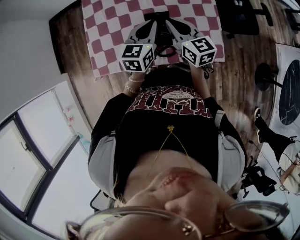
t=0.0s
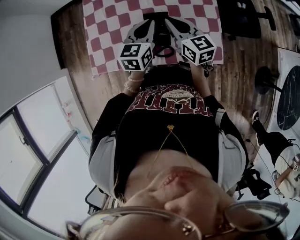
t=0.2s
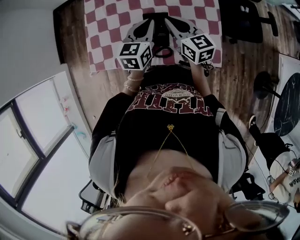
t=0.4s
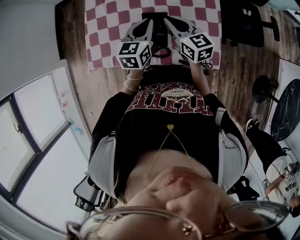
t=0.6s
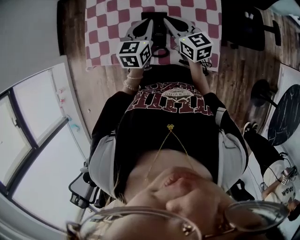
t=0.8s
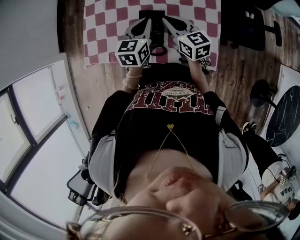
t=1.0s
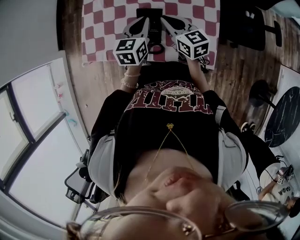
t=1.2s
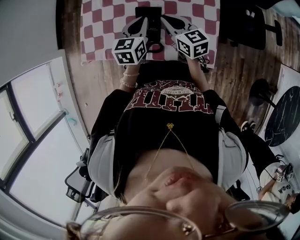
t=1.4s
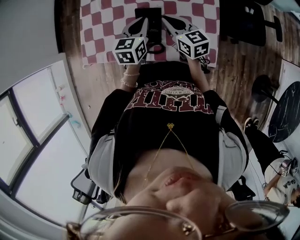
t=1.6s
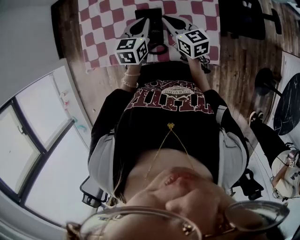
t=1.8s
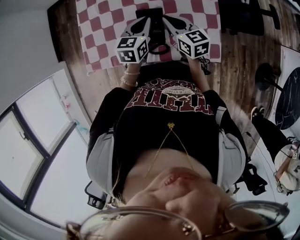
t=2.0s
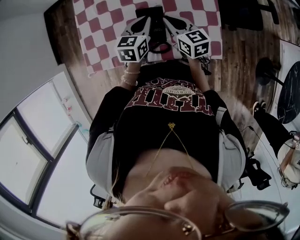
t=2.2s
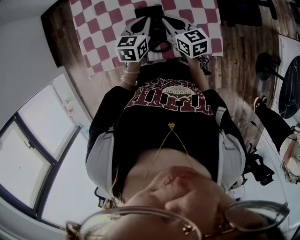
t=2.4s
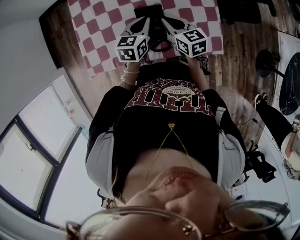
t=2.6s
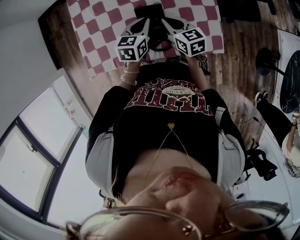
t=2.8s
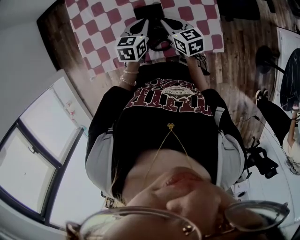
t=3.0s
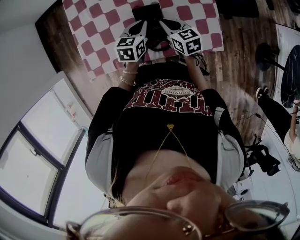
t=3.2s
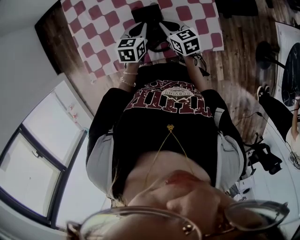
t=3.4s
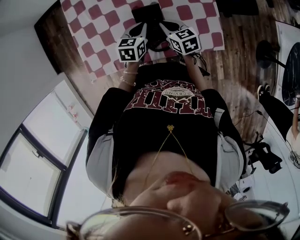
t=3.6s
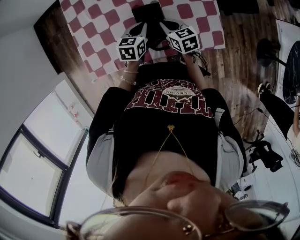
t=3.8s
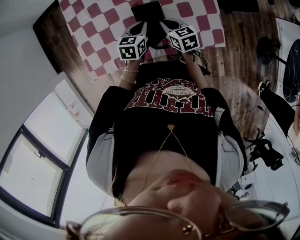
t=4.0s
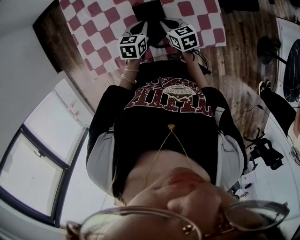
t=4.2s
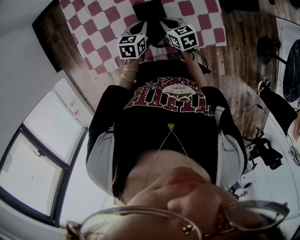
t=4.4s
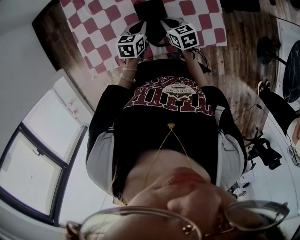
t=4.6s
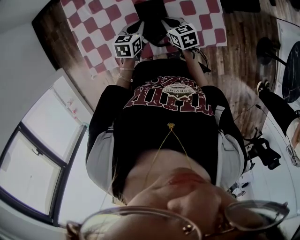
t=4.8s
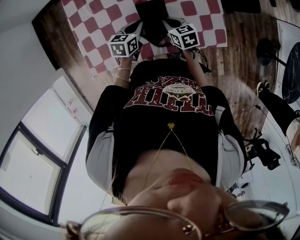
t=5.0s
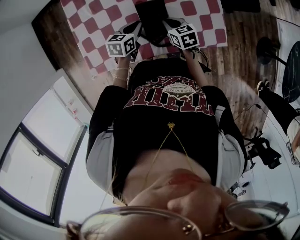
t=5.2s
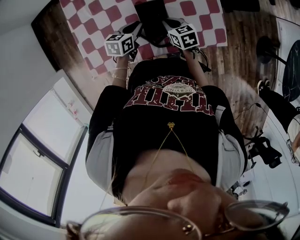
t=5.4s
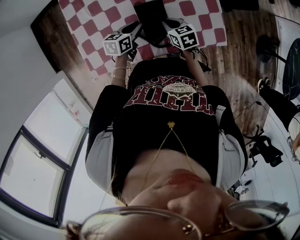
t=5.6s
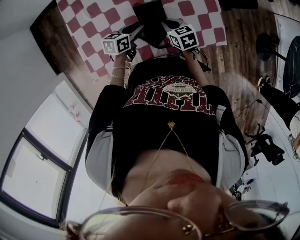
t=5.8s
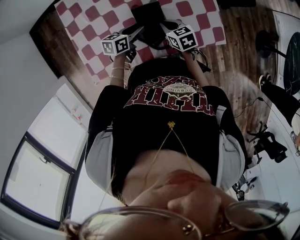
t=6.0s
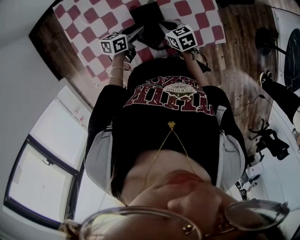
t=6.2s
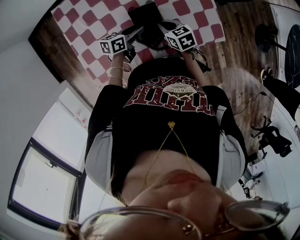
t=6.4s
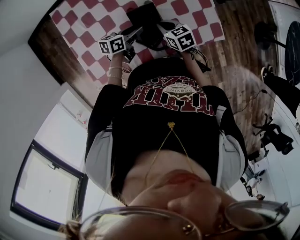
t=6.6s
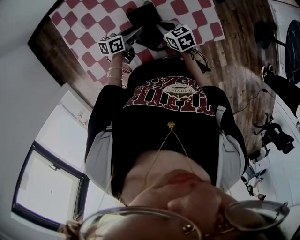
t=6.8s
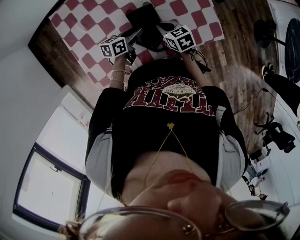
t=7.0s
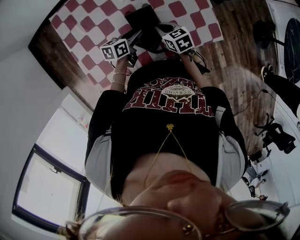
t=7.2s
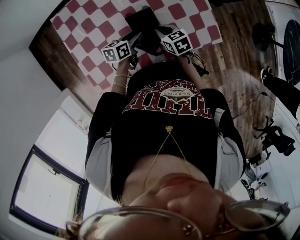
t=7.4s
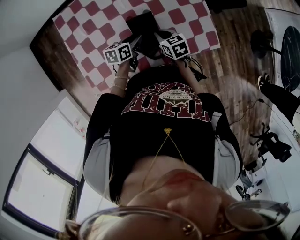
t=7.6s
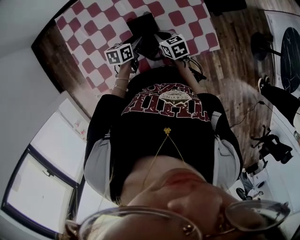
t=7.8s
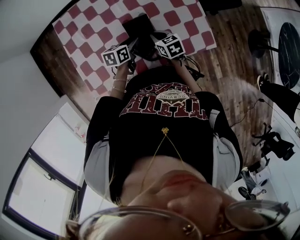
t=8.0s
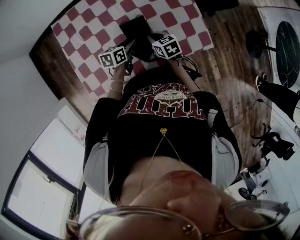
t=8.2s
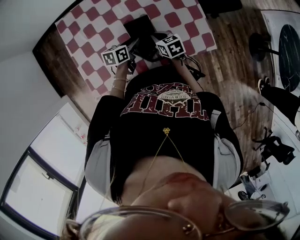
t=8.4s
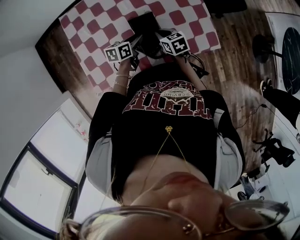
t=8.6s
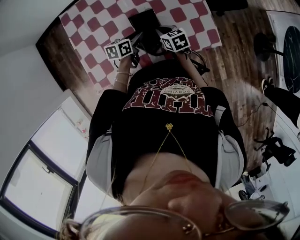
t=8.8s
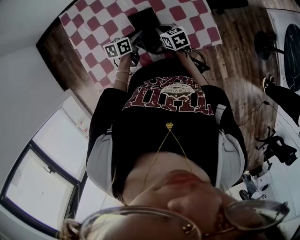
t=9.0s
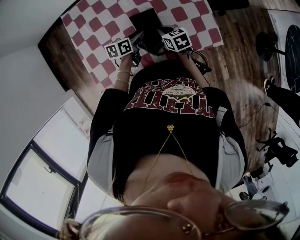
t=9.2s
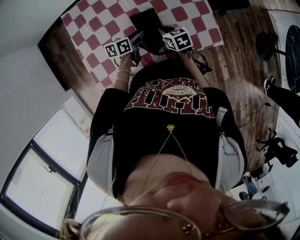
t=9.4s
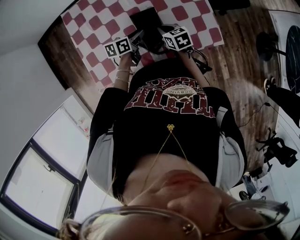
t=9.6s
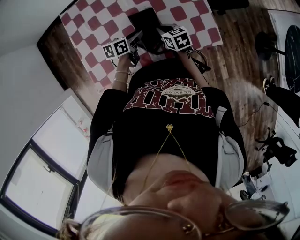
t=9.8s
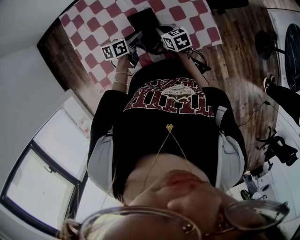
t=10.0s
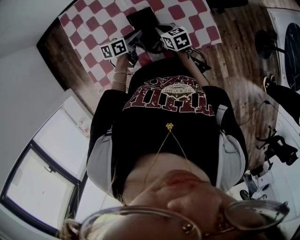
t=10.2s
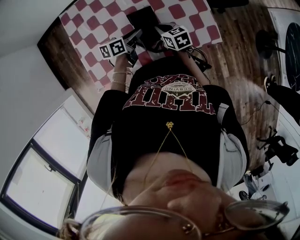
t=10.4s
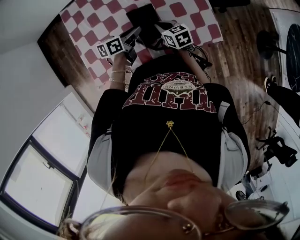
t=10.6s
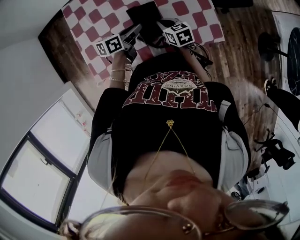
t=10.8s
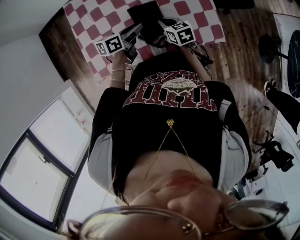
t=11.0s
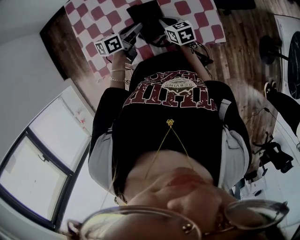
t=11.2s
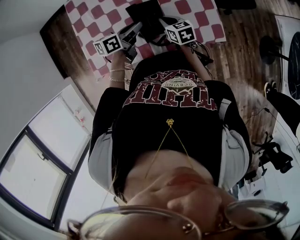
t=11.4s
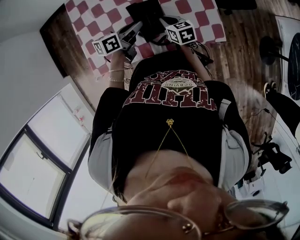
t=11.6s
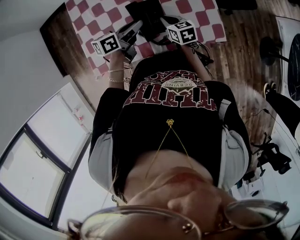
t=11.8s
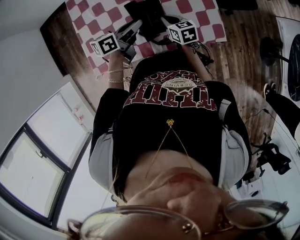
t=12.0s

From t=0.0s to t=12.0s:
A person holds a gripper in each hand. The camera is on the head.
From t=0.0s to t=1.6s: The two grippers go roughly 5 cm downward.
From t=1.6s to t=3.0s: Both grippers move downward, some 5 cm.
From t=3.0s to t=4.4s: The two grippers go approximately 5 cm downward.
From t=4.4s to t=6.0s: The left gripper swivels roughly 30 degrees, and opens.
From t=6.0s to t=10.4s: The grippers make only small movements.
From t=10.4s to t=12.0s: The left gripper shifts roughly 10 cm upward.

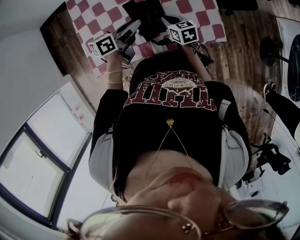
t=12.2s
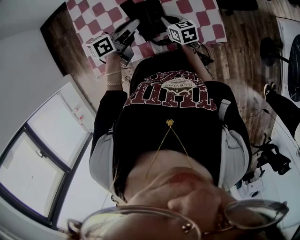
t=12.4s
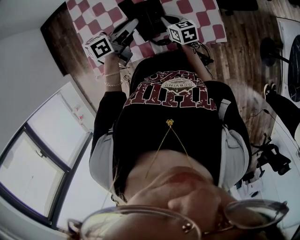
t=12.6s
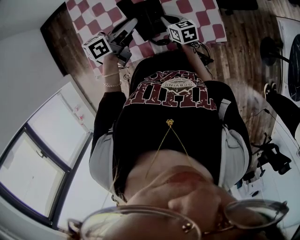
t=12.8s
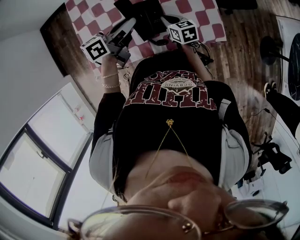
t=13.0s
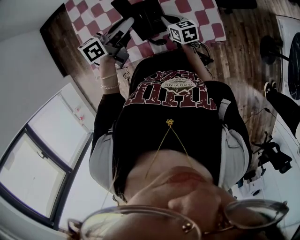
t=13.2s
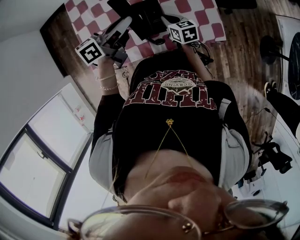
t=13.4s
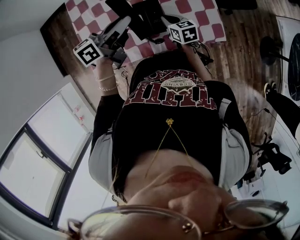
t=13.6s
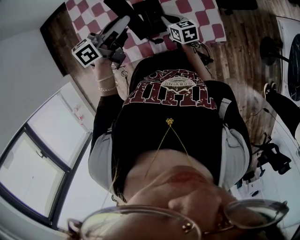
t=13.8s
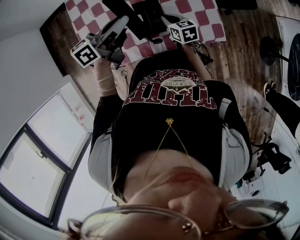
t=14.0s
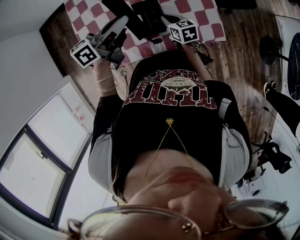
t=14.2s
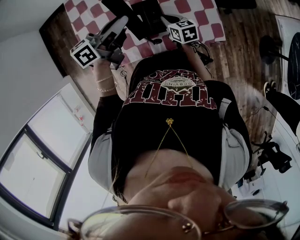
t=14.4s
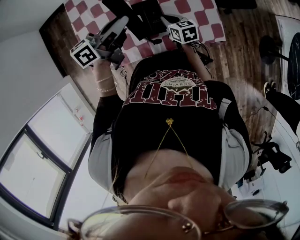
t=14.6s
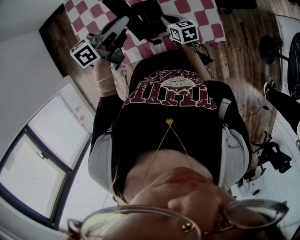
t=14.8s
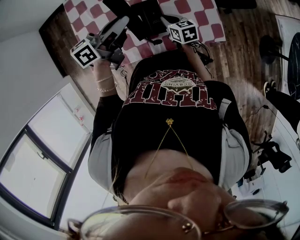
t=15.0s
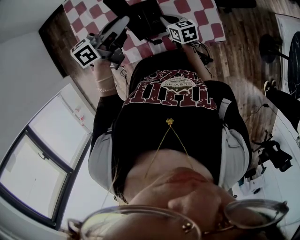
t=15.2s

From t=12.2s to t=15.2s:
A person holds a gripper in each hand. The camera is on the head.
From t=12.2s to t=13.8s: The left gripper shifts about 10 cm upward.
From t=13.8s to t=15.2s: Both grippers stay about where they are.

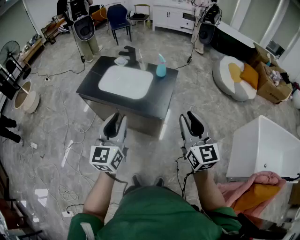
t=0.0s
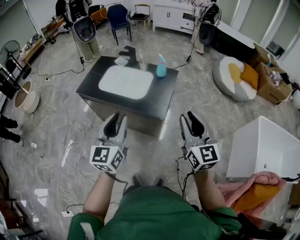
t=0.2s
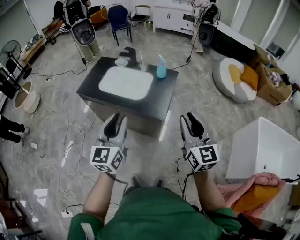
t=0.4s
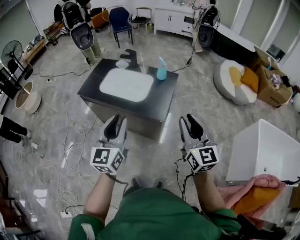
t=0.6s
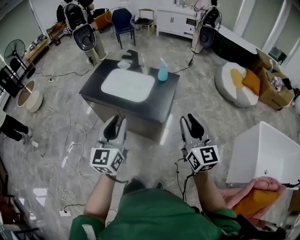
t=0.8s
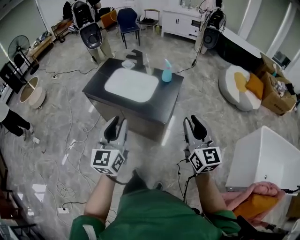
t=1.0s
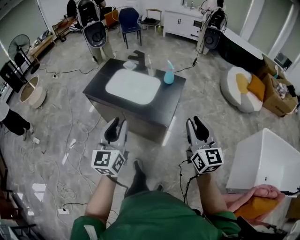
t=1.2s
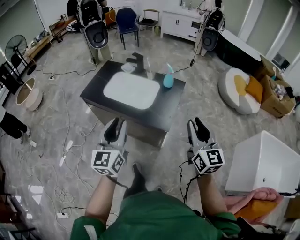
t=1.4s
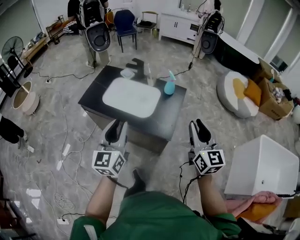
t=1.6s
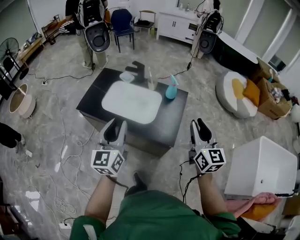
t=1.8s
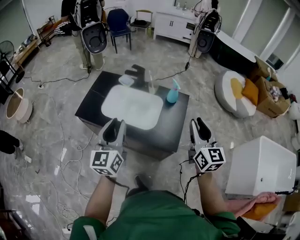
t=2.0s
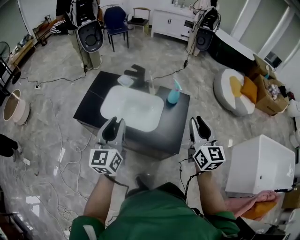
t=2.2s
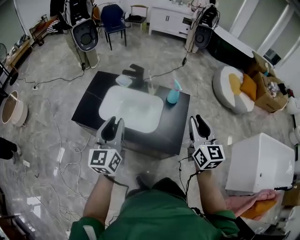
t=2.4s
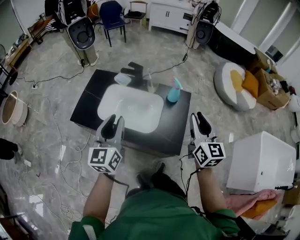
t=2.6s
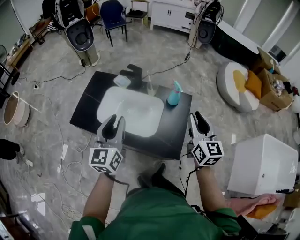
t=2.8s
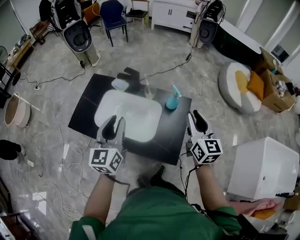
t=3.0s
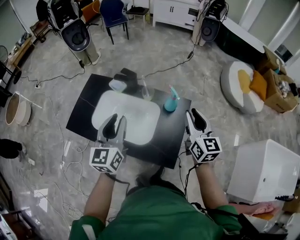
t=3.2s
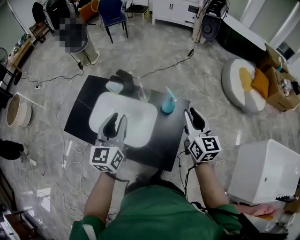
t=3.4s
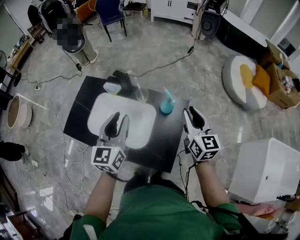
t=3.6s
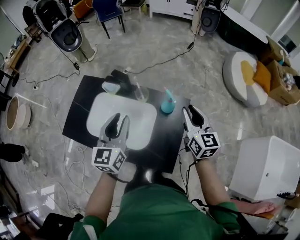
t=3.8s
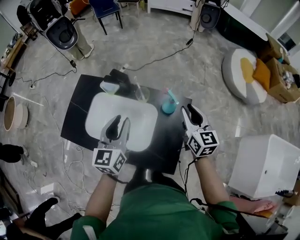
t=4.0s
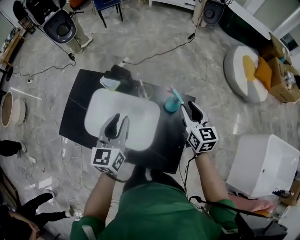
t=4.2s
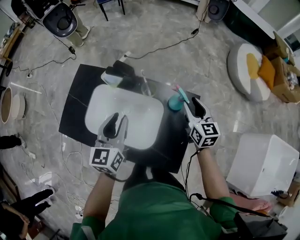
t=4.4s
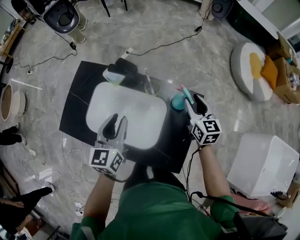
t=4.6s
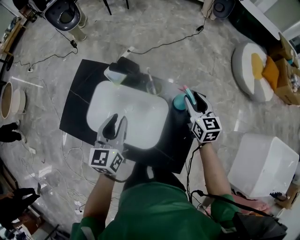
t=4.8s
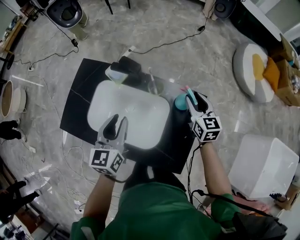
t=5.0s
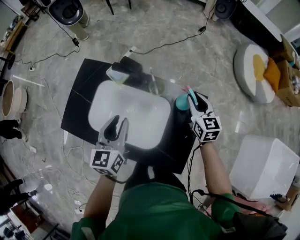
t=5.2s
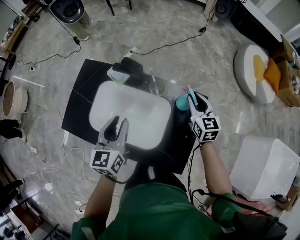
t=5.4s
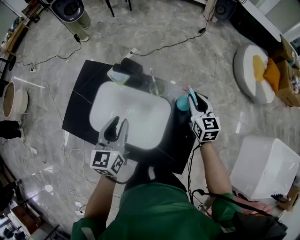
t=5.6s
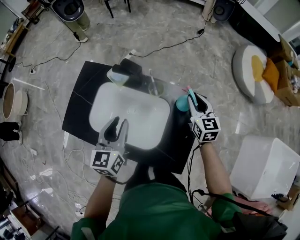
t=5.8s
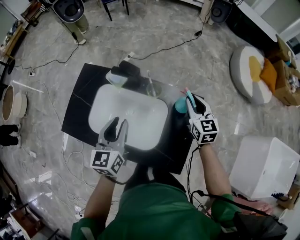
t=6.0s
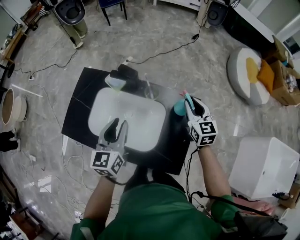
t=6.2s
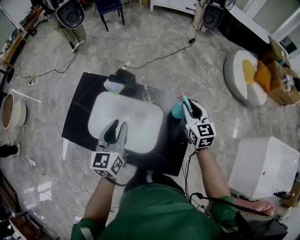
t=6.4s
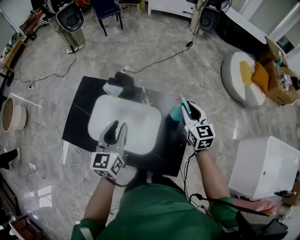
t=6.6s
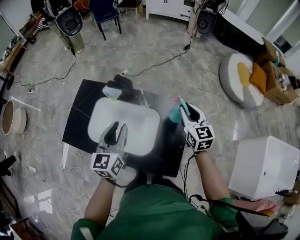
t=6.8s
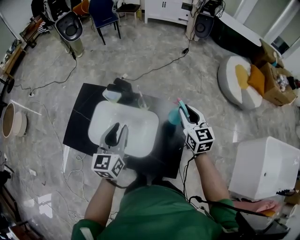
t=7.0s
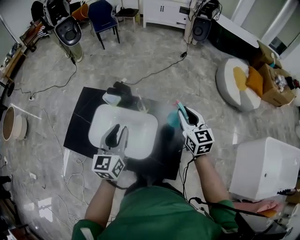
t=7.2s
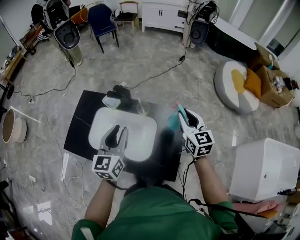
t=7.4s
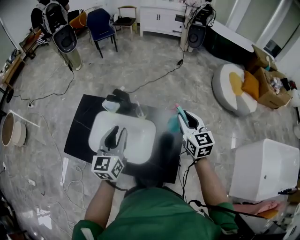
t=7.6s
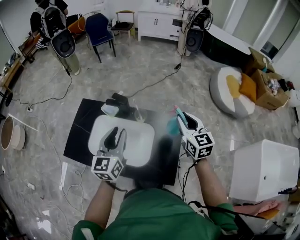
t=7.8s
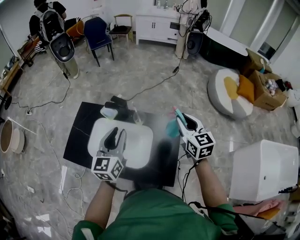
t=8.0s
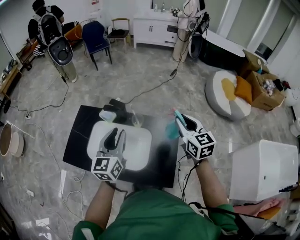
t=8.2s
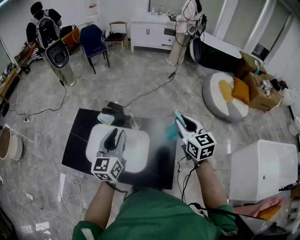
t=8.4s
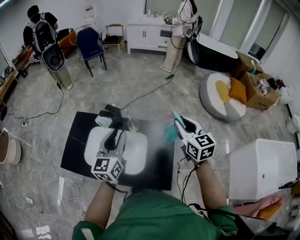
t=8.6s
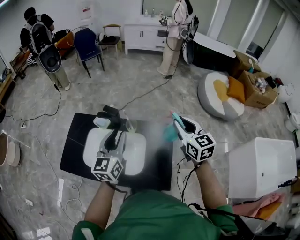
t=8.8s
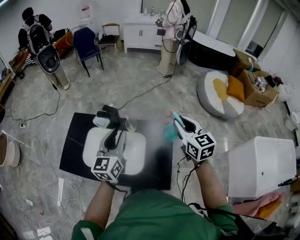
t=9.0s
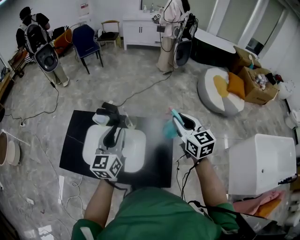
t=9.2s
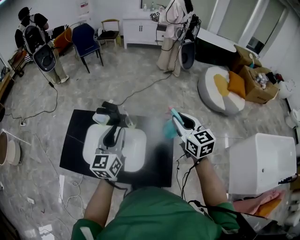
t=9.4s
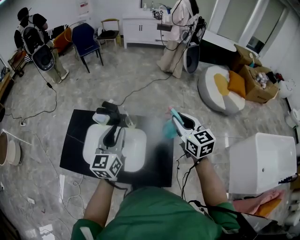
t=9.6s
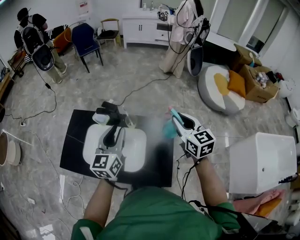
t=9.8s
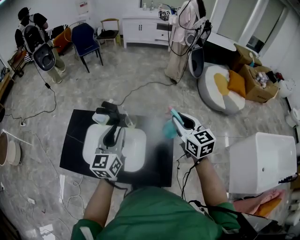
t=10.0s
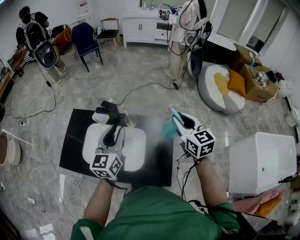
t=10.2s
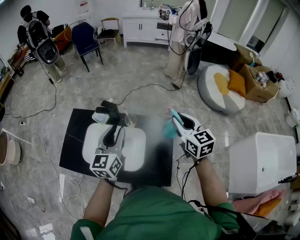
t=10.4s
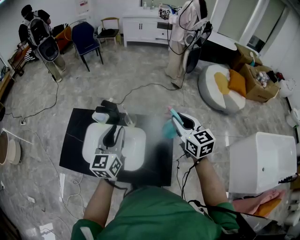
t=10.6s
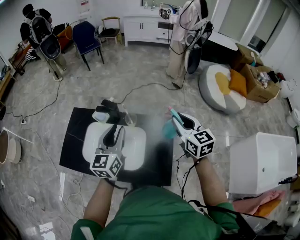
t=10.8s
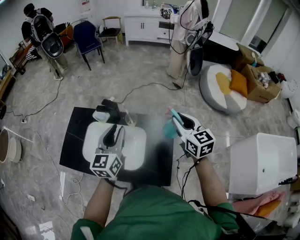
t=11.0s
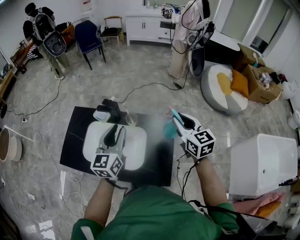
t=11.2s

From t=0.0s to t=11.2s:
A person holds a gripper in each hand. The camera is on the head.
From t=0.0s to t=1.6s: The right gripper is displaced forward by approximately 15 cm; the left gripper moves forward and to the left, about 15 cm.
From t=1.6s to t=3.2s: Both grippers travel together forward, about 35 cm.
From t=3.2s to t=4.8s: The two grippers go some 25 cm forward and downward.
From t=4.8s to t=6.4s: The left gripper ends up about 5 cm from where it was, while the right gripper shifts approximately 5 cm upward.
From t=6.4s to t=8.0s: The right gripper travels upward and backward by some 15 cm, while the left gripper shifts approximately 10 cm upward.
From t=8.0s to t=9.6s: The grippers move only a little.
From t=9.6s to t=11.2s: The two grippers keep their place.
